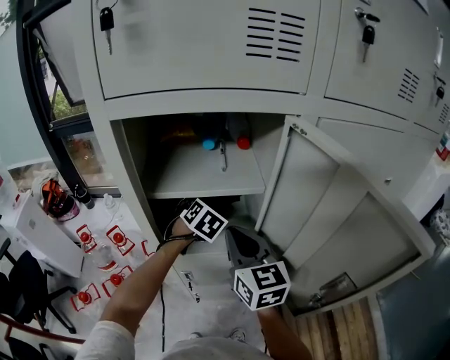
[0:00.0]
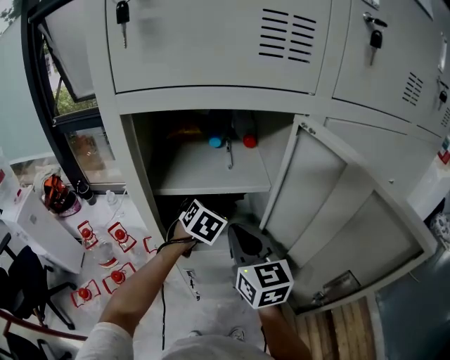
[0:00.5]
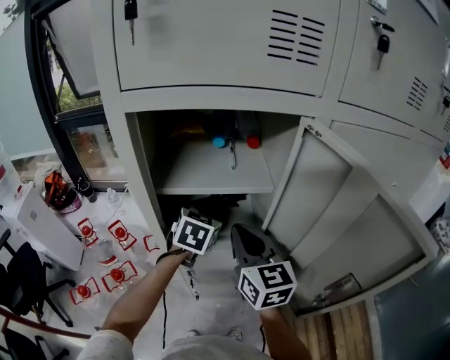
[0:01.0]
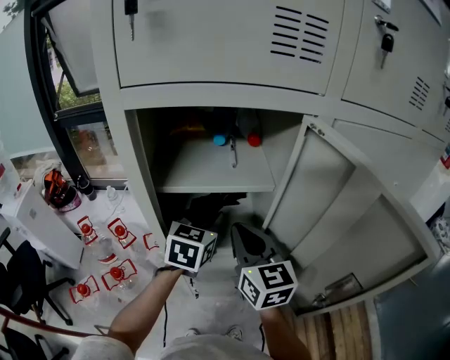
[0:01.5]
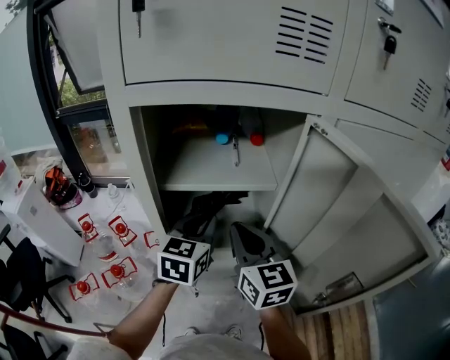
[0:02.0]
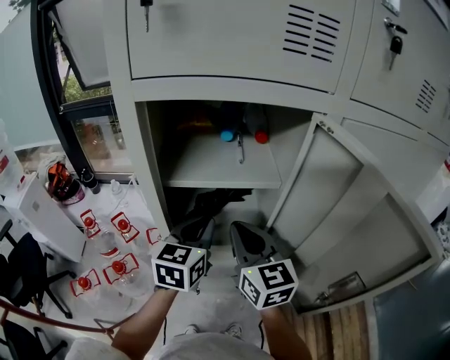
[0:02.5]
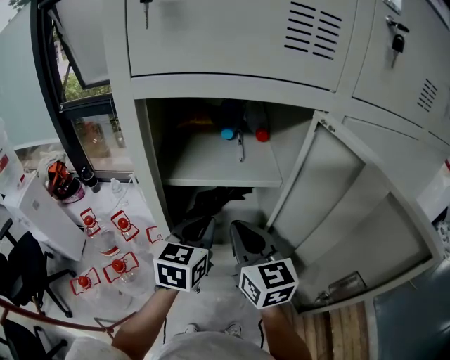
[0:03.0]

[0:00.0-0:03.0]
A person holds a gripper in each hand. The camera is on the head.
0:00.0 to 0:01.5: The left gripper shifts roughly 10 cm backward and upward, rotates about 40 degrees, and closes up.
0:01.5 to 0:03.0: The left gripper changes place by approximately 5 cm, and closes.

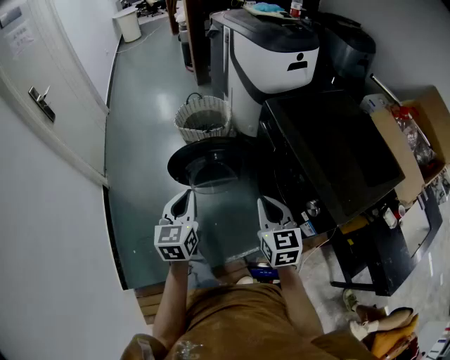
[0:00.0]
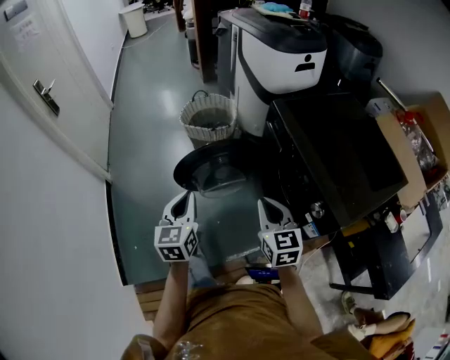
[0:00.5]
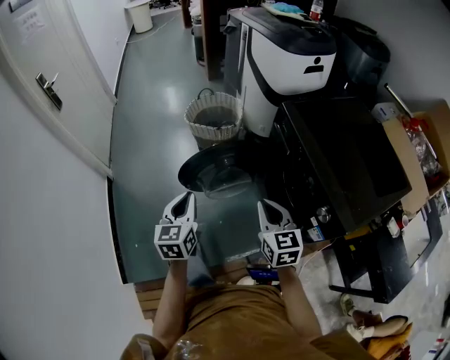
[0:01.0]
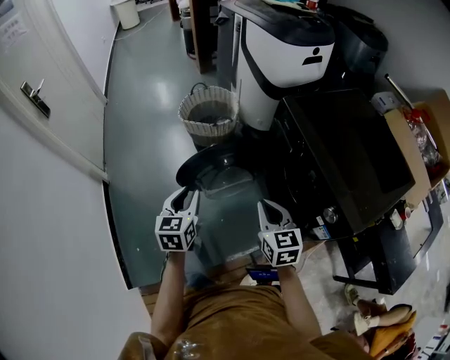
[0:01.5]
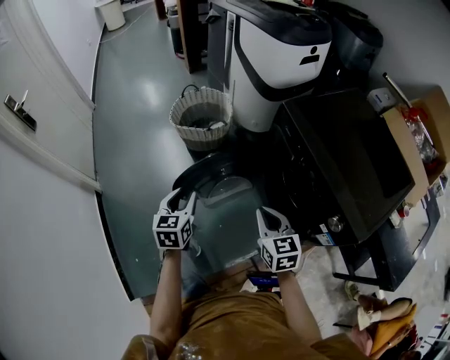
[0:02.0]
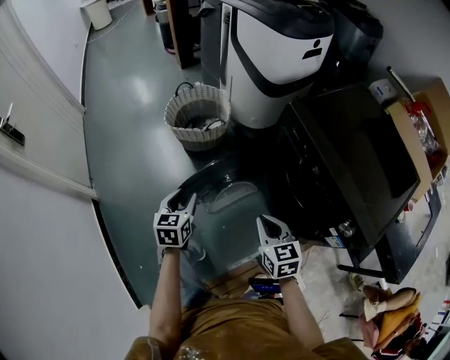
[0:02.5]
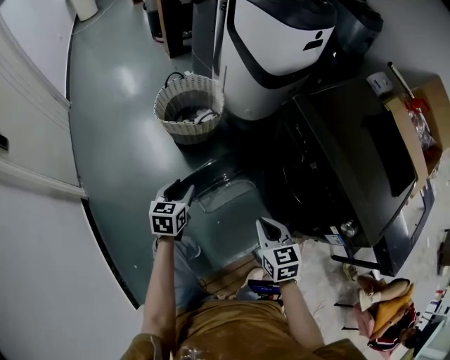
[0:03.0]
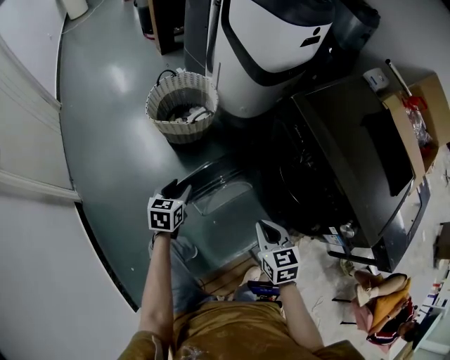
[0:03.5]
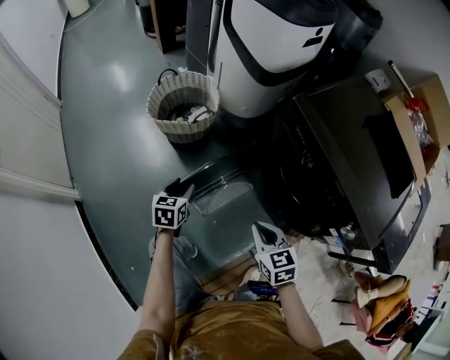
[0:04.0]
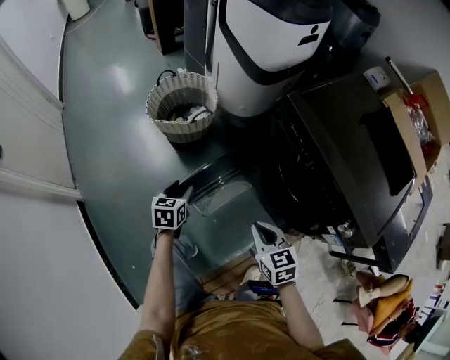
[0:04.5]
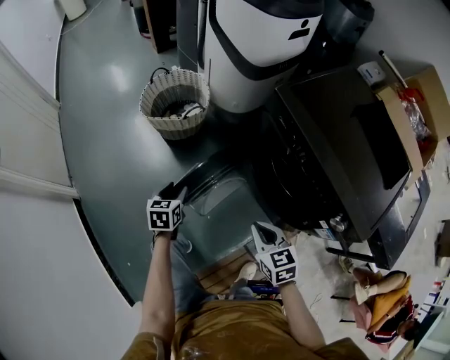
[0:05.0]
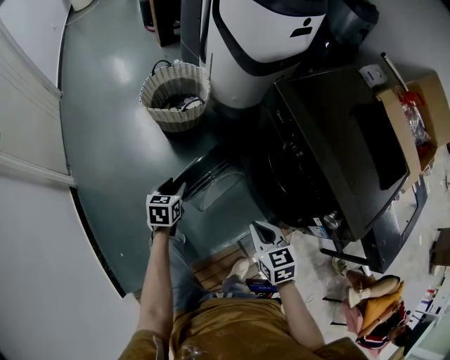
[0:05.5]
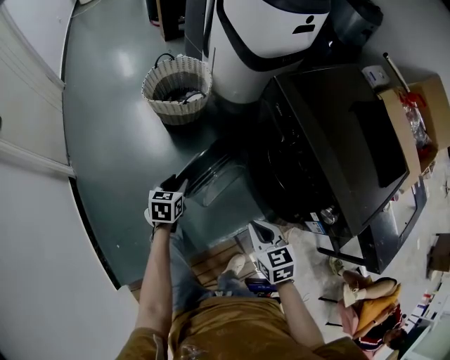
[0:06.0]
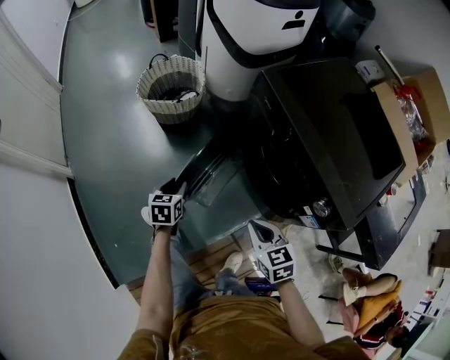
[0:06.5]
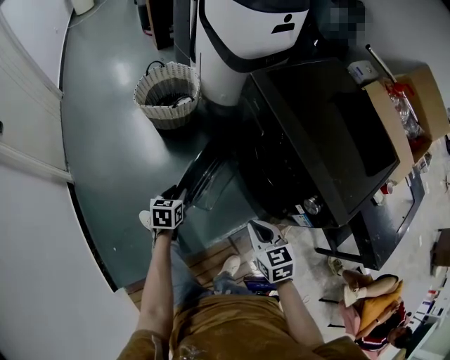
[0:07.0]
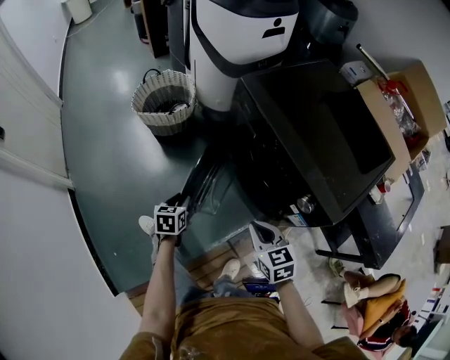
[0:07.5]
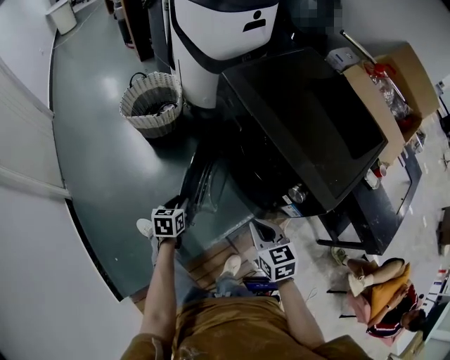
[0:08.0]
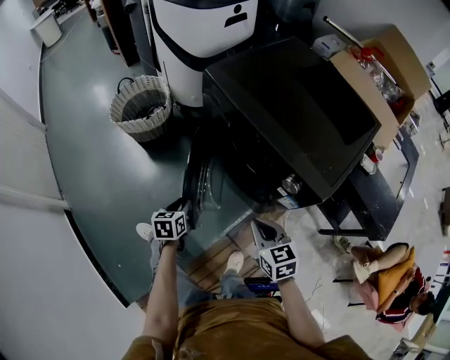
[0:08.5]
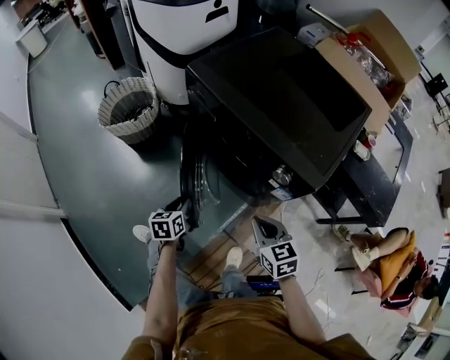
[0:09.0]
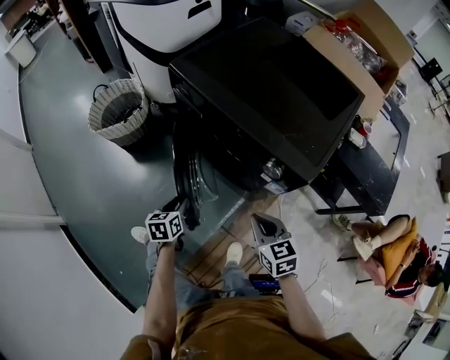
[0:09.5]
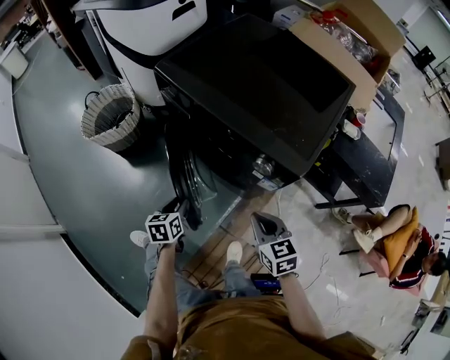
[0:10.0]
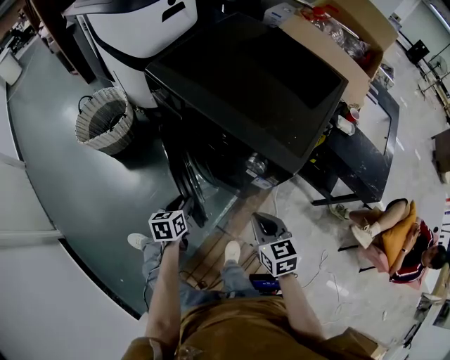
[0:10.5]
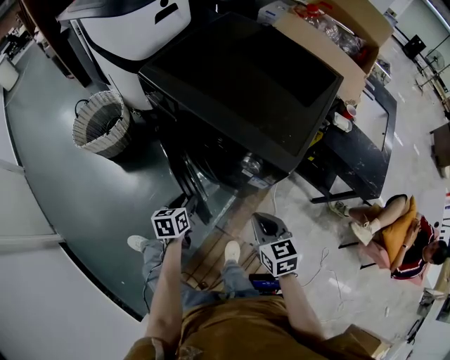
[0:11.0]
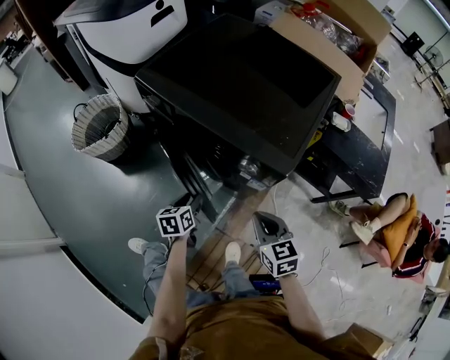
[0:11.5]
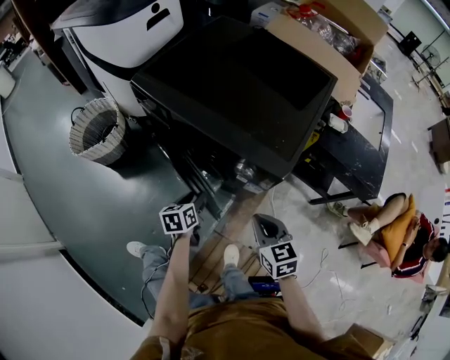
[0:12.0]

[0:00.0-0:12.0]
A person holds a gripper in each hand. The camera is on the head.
0:00.0 to 0:02.0: The grippers both shift forward, downward and to the left by roughly 15 cm. The left gripper opens up.
0:02.0 to 0:04.0: The right gripper moves downward, some 10 cm. The left gripper shifts some 20 cm downward and forward, and rotates approximately 20 degrees.
0:04.0 to 0:06.0: Both grippers move backward and to the right, roughly 10 cm.
0:06.0 to 0:08.0: The two grippers go approximately 15 cm to the right and backward.
0:08.0 to 0:10.0: The grippers both shift to the right by approximately 10 cm.
0:10.0 to 0:12.0: The left gripper heads to the right and forward, covering about 10 cm.

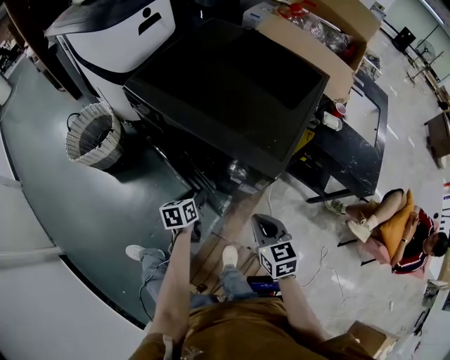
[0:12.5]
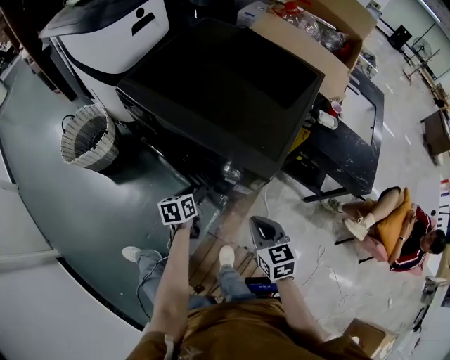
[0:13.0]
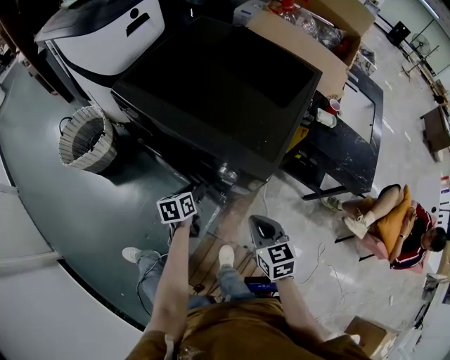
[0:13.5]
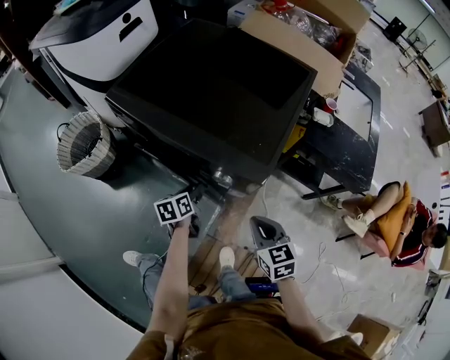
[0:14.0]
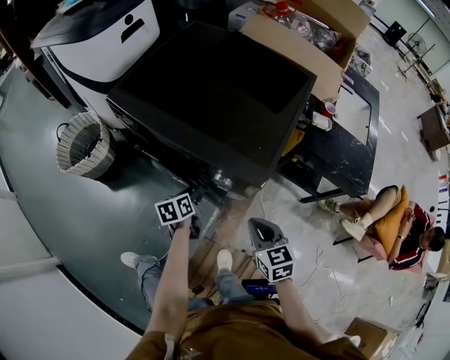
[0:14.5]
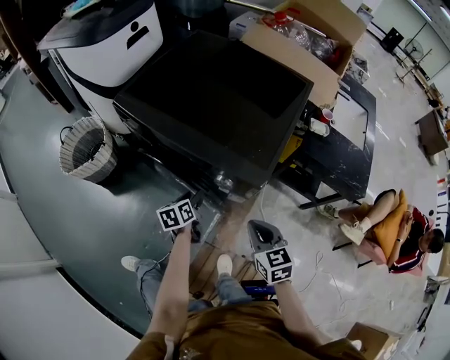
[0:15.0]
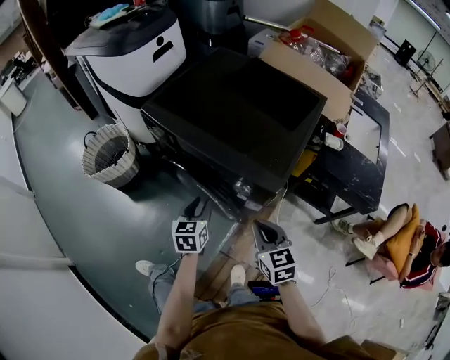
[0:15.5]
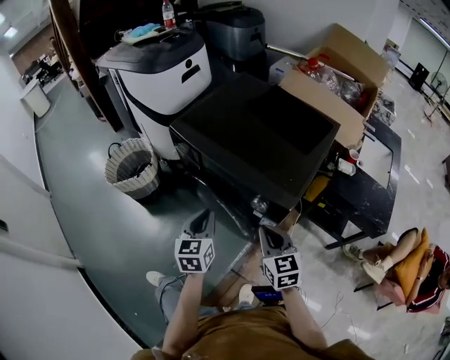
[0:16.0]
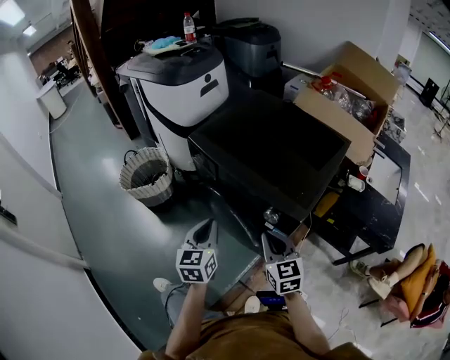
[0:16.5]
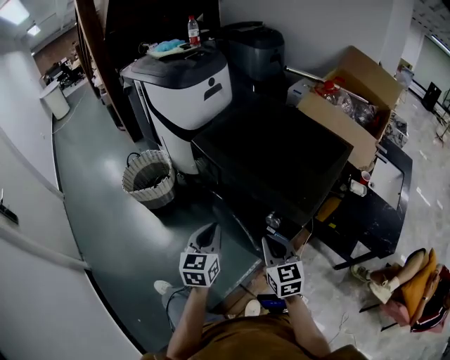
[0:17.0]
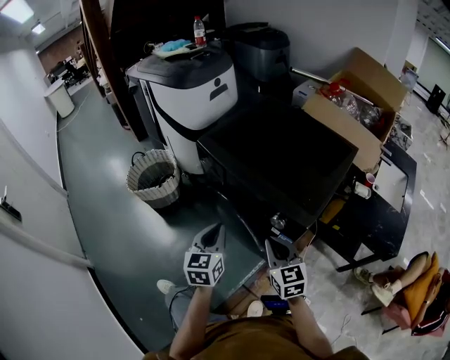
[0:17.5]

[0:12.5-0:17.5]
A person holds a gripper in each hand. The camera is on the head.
0:12.5 to 0:15.0: The grippers make only small movements.
0:15.0 to 0:17.5: The right gripper travels to the left and upward by roughly 15 cm; the left gripper moves upward and to the left, roughly 25 cm, swivels roughly 40 degrees, and closes up.

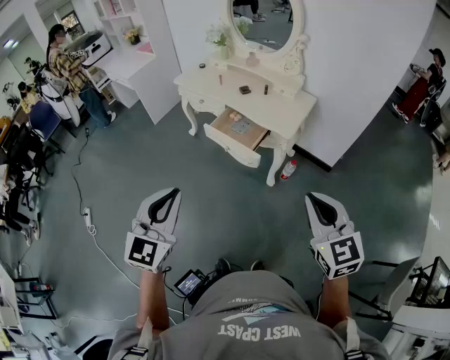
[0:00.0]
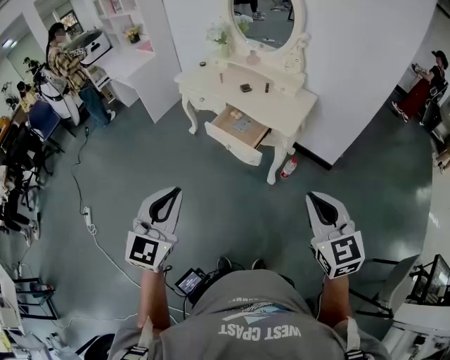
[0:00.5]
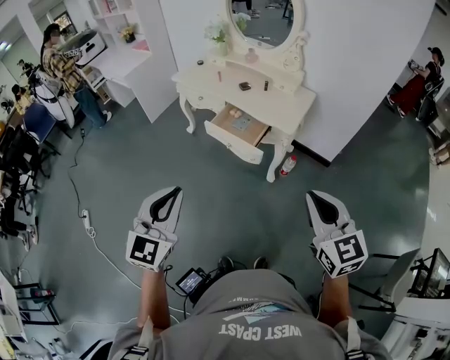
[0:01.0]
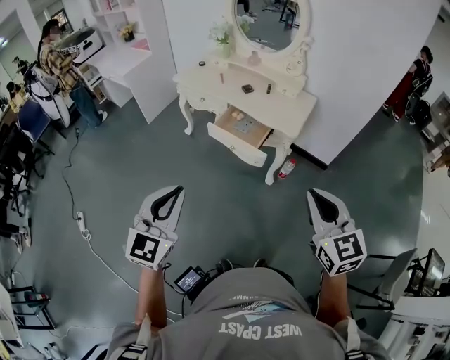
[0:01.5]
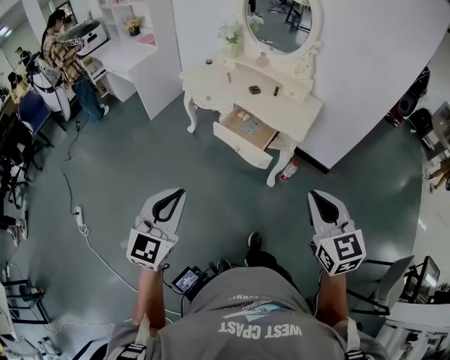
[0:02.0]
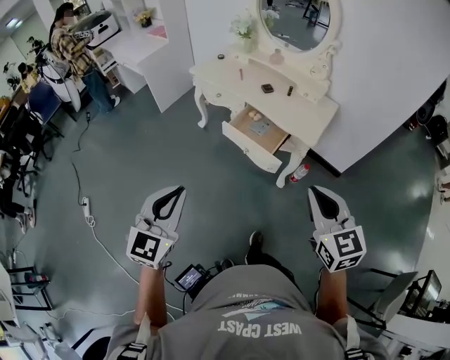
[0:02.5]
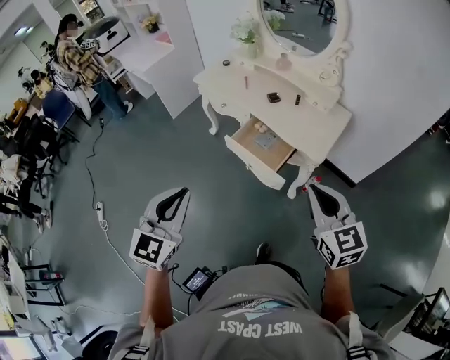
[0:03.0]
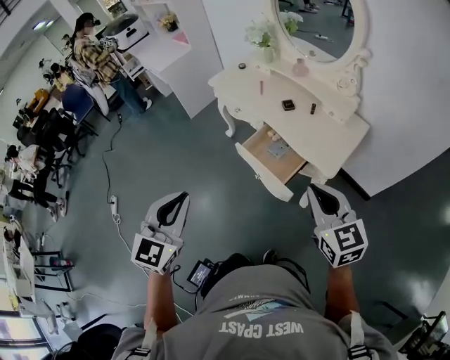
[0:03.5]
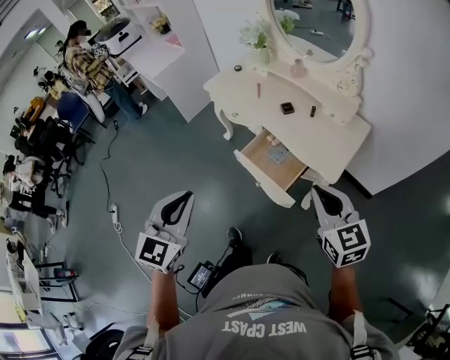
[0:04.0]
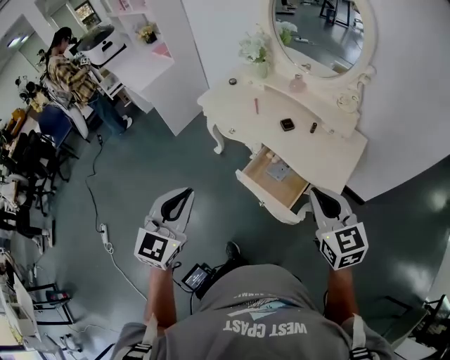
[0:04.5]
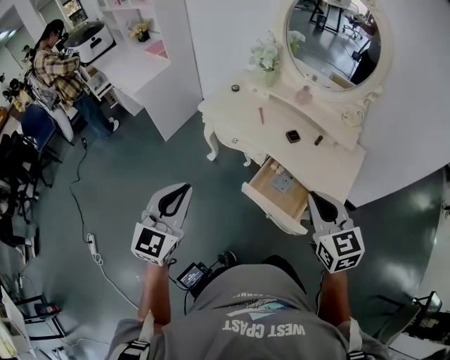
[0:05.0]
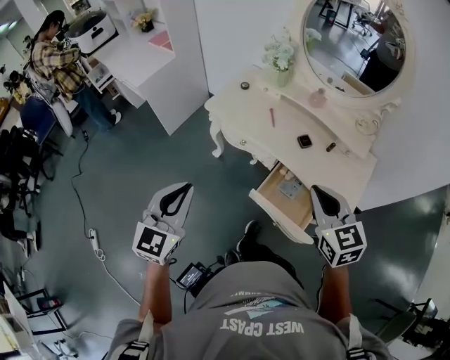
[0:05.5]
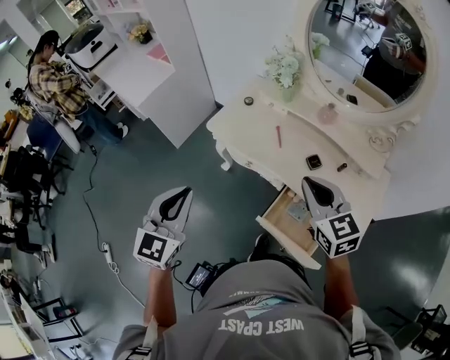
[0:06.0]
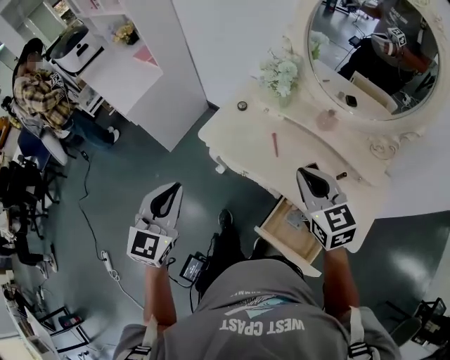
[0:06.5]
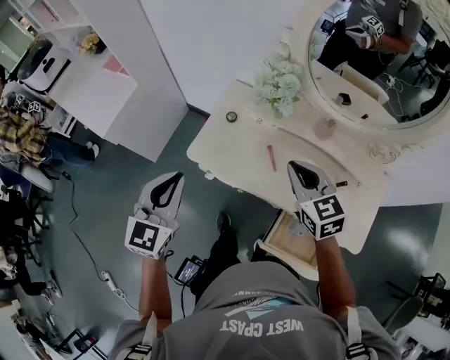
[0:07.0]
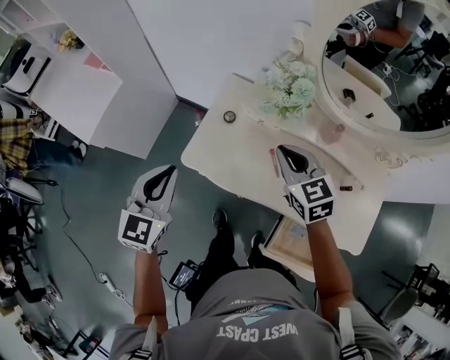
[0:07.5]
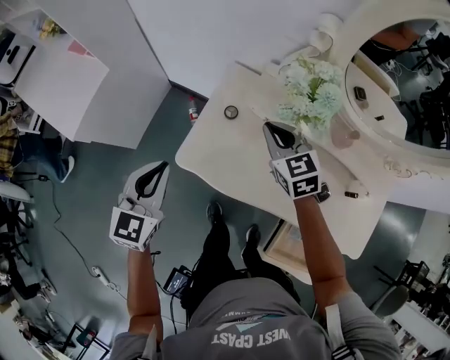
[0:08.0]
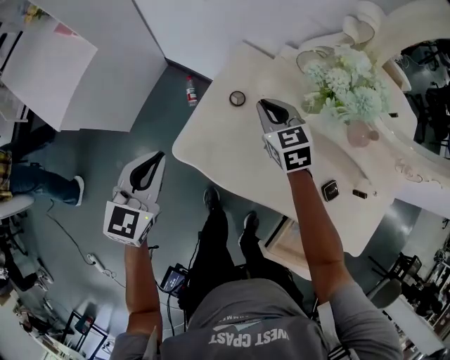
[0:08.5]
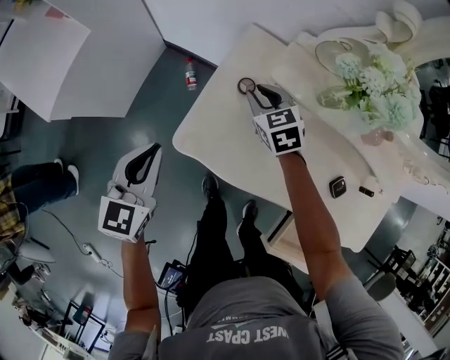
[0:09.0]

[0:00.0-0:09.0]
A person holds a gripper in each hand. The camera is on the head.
0:00.0 to 0:02.0: The two grippers go roughly 10 cm to the left.
0:02.0 to 0:04.5: Both grippers travel together forward, approximately 40 cm.
0:04.5 to 0:07.0: The pair of grippers is taken forward, some 60 cm.
0:07.0 to 0:09.0: The grippers both shift downward, forward and to the left by about 40 cm. The right gripper opens up.
